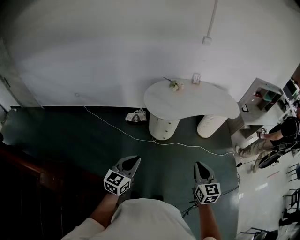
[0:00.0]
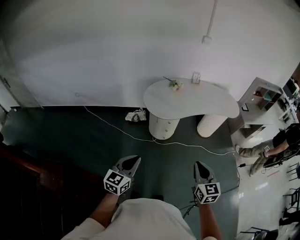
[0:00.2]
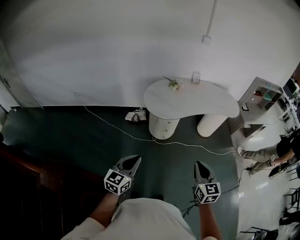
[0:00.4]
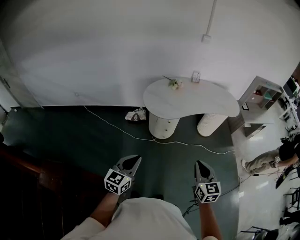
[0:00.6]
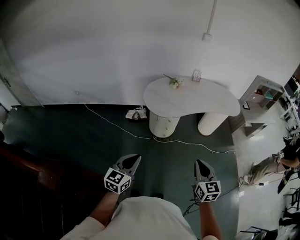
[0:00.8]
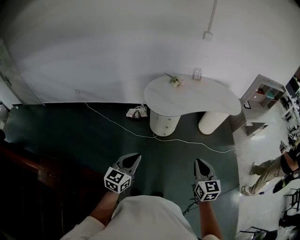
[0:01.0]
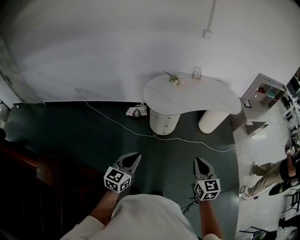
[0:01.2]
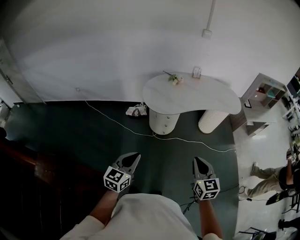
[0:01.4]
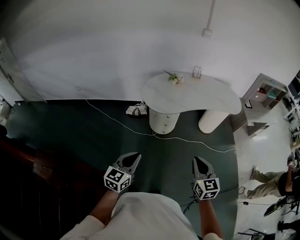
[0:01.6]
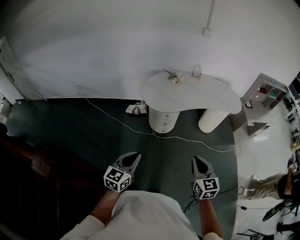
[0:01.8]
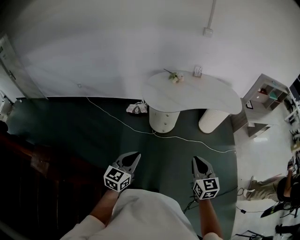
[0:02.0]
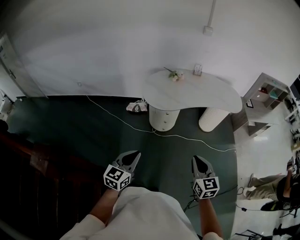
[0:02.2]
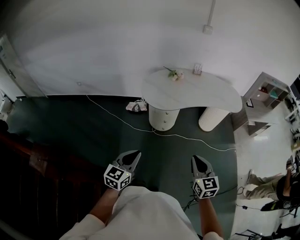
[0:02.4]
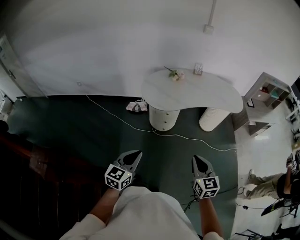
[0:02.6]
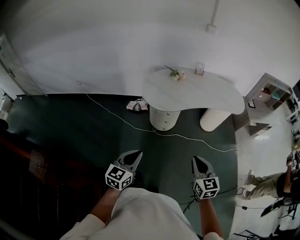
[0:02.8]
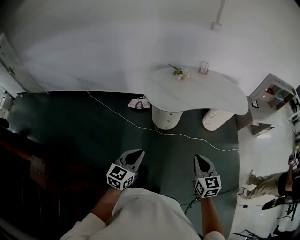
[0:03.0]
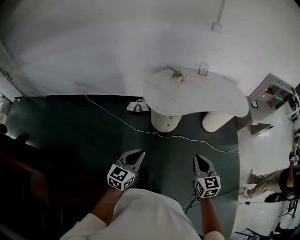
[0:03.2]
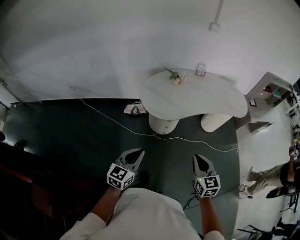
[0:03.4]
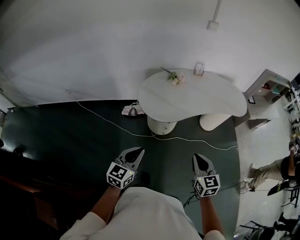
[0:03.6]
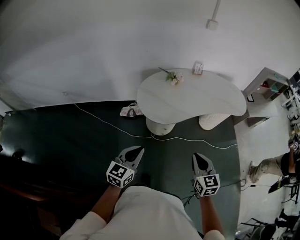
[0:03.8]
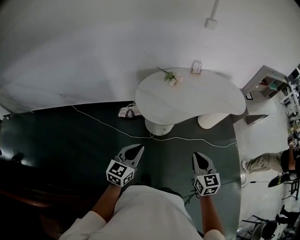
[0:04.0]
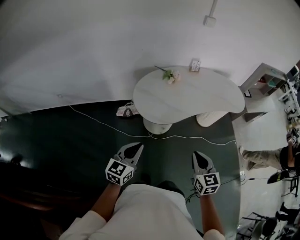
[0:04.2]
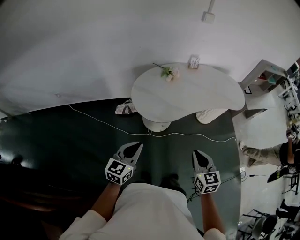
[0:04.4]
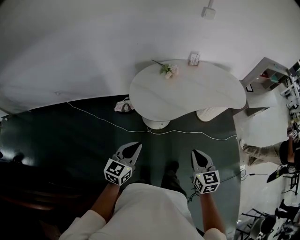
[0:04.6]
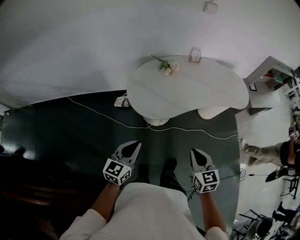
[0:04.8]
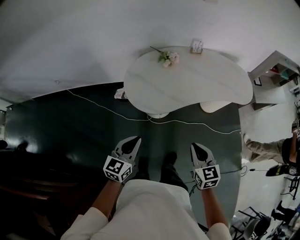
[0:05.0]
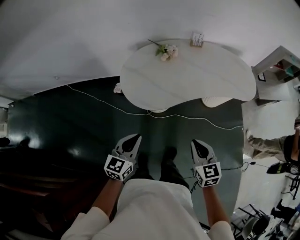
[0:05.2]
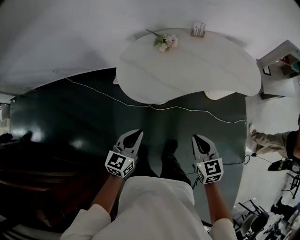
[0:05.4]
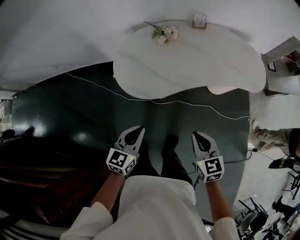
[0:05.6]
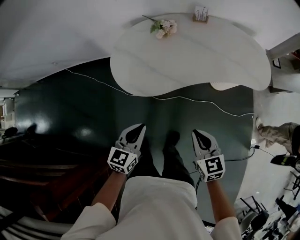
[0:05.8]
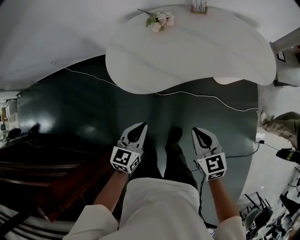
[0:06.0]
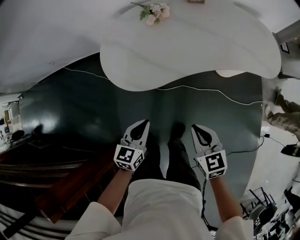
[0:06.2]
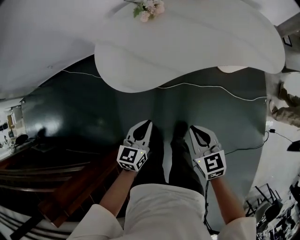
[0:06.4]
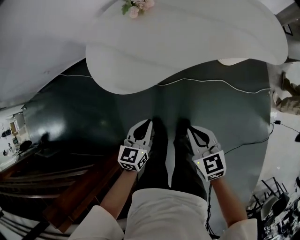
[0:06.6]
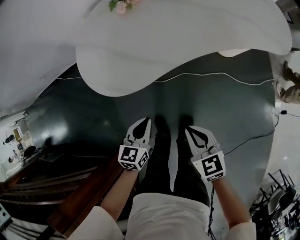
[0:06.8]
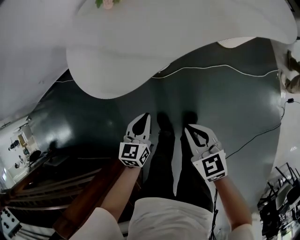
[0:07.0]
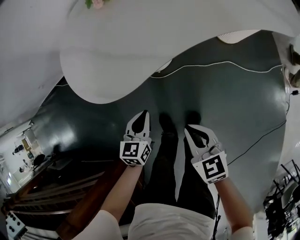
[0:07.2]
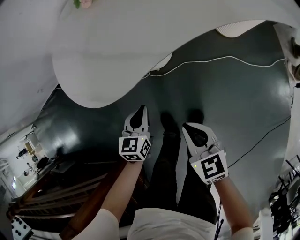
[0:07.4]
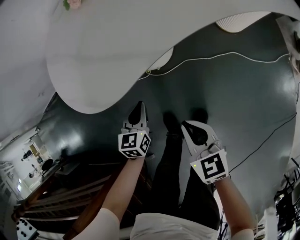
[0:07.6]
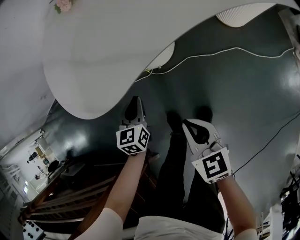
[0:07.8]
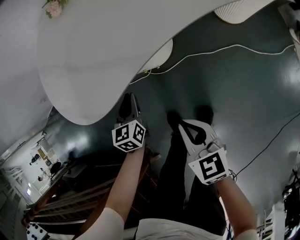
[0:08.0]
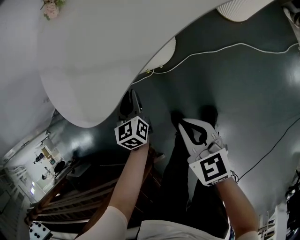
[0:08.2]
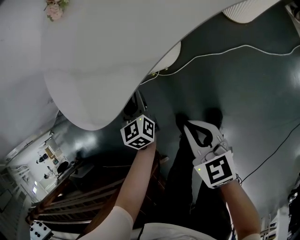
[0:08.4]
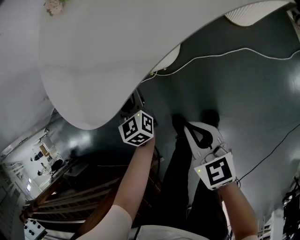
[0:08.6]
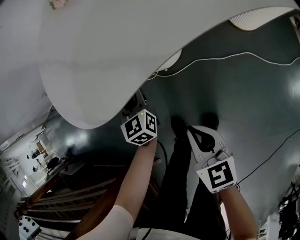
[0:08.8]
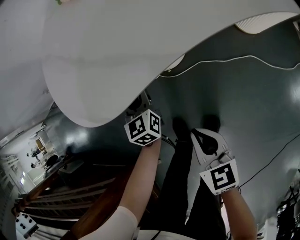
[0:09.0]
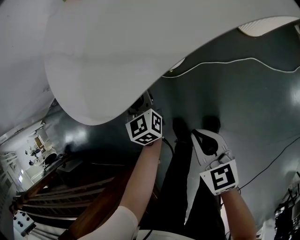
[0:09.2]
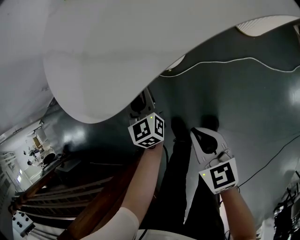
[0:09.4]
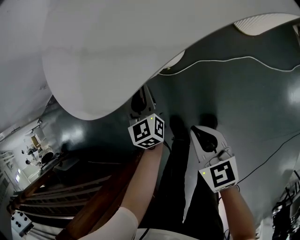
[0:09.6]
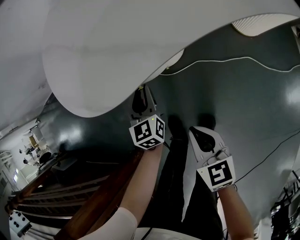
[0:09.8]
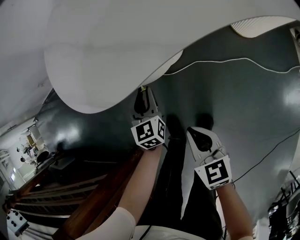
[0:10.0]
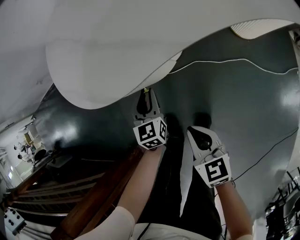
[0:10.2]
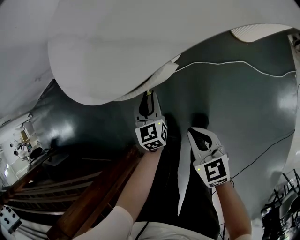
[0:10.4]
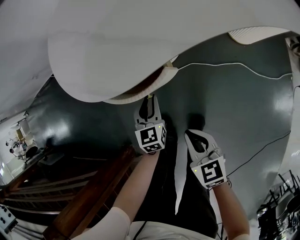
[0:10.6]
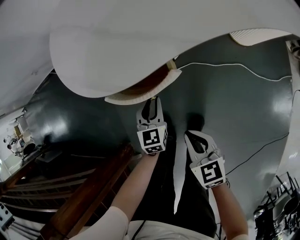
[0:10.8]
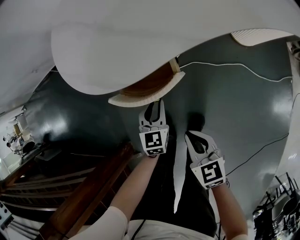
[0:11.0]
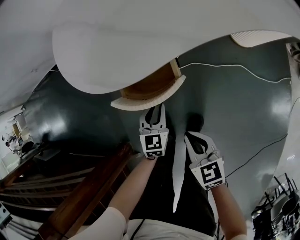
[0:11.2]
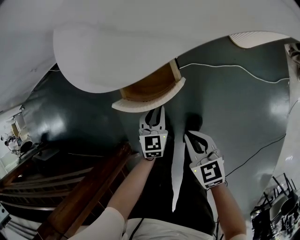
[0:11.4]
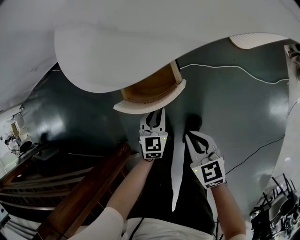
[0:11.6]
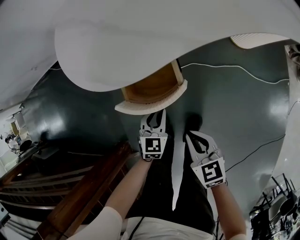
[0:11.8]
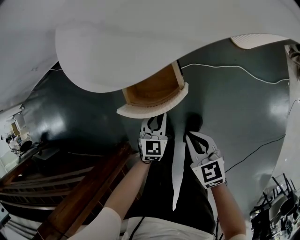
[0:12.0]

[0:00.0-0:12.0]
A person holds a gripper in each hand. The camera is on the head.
0:00.0 to 0:01.6: The left gripper heads to the right, covering about 5 cm, while the right gripper ends up about 5 cm from where it was.
0:01.6 to 0:03.0: The grippers both shift forward by approximately 5 cm.
0:03.0 to 0:04.4: The left gripper is displaced forward by roughly 20 cm; the right gripper shifts about 15 cm forward and to the left.
0:04.4 to 0:06.0: The right gripper travels downward, to the right and forward by about 25 cm, and swivels roughly 20 degrees. Meanwhile the left gripper goes some 30 cm to the right, downward and forward.
0:06.0 to 0:07.6: Both grippers travel together downward, some 30 cm.
0:07.6 to 0:09.0: The left gripper moves forward, roughly 10 cm, changes its angle by about 30 degrees, and opens. Meanwhile the right gripper goes approximately 5 cm downward.
0:09.0 to 0:10.4: The left gripper shifts about 10 cm backward.
0:10.4 to 0:12.0: The left gripper shifts approximately 10 cm backward, and rotates about 20 degrees.

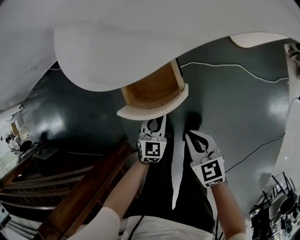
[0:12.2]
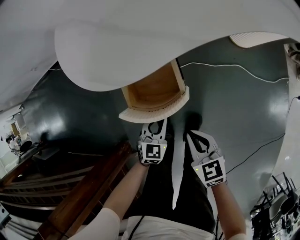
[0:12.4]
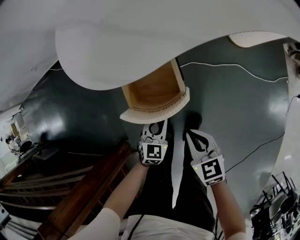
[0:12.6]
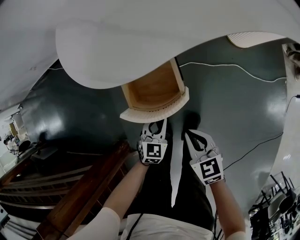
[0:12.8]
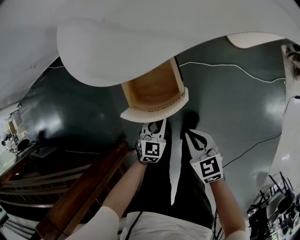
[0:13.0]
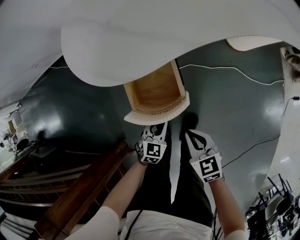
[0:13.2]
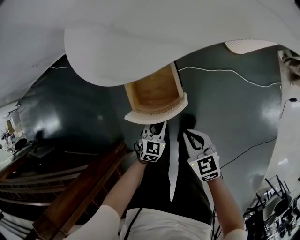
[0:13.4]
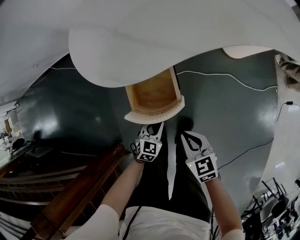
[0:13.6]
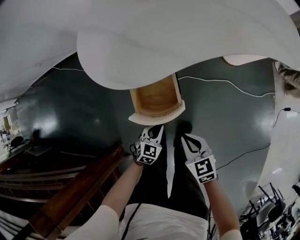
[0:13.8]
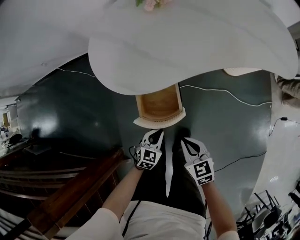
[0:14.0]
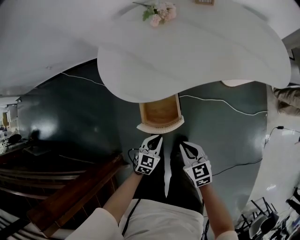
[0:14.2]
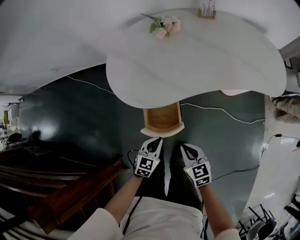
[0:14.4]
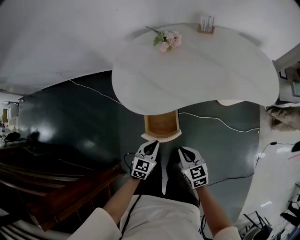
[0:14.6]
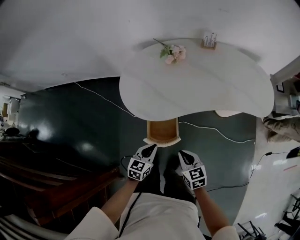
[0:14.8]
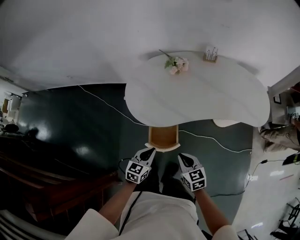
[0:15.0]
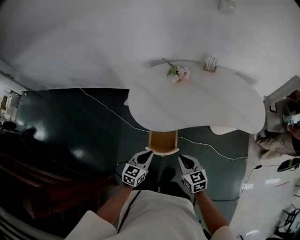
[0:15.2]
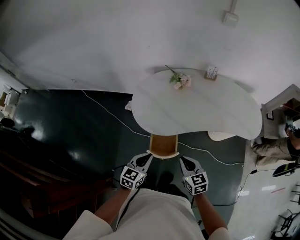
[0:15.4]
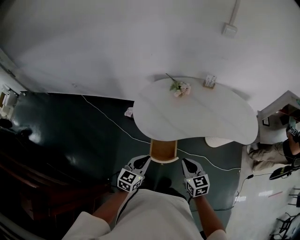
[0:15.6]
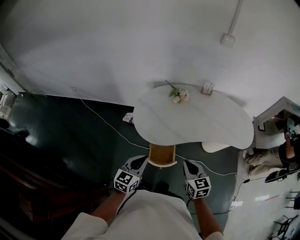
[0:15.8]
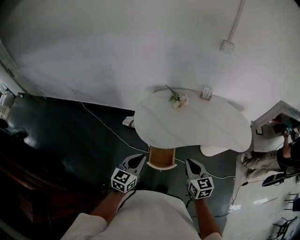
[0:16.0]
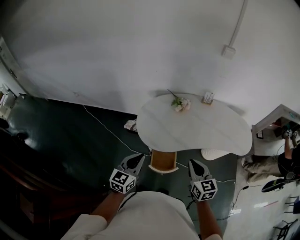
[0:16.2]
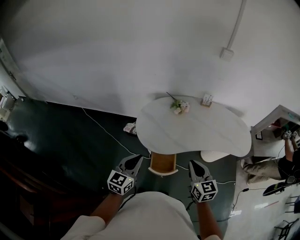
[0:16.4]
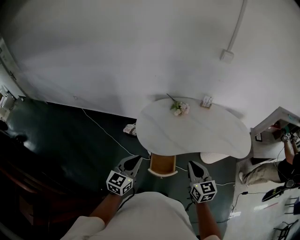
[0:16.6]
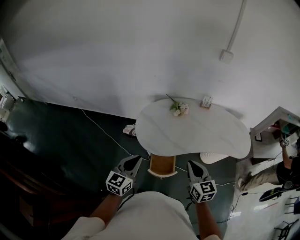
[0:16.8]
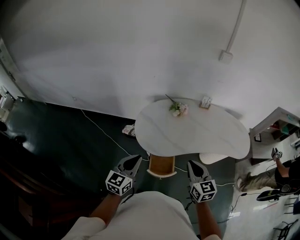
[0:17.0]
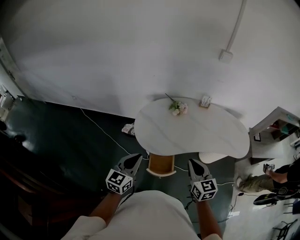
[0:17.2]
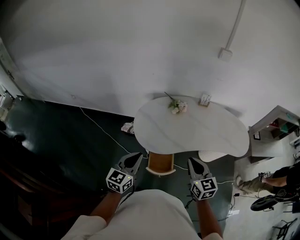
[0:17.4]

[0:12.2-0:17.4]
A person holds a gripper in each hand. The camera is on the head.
0:12.2 to 0:14.0: Both grippers move upward, approximately 10 cm.
0:14.0 to 0:15.6: The two grippers go about 35 cm upward. The left gripper rotates some 30 degrees.
0:15.6 to 0:17.4: The right gripper heads upward, covering some 15 cm. Meanwhile the left gripper travels upward and to the left by about 15 cm.

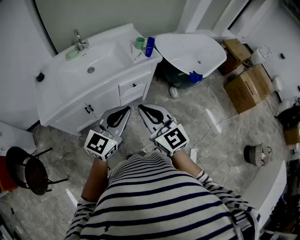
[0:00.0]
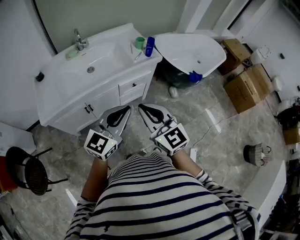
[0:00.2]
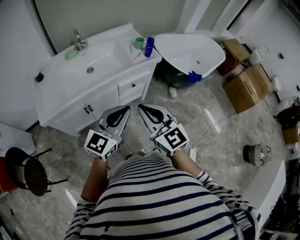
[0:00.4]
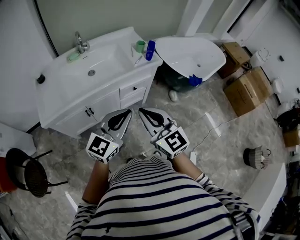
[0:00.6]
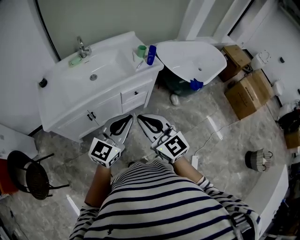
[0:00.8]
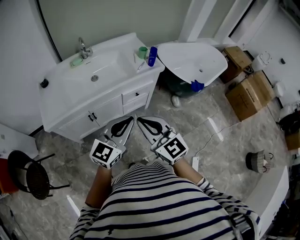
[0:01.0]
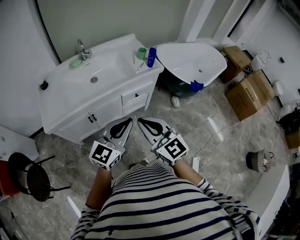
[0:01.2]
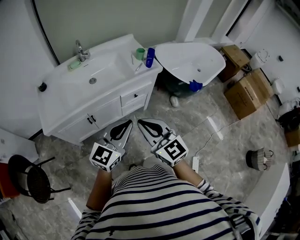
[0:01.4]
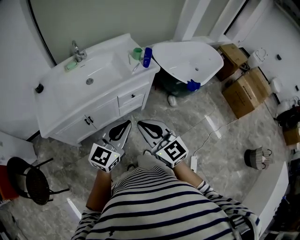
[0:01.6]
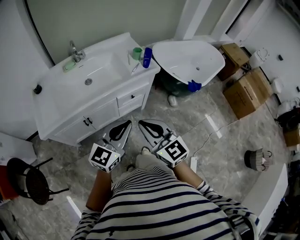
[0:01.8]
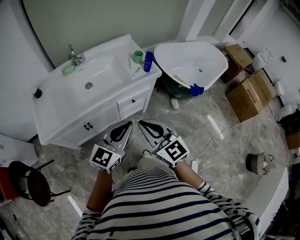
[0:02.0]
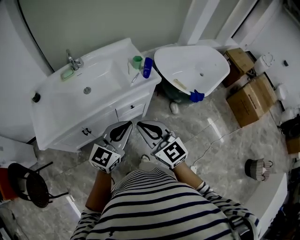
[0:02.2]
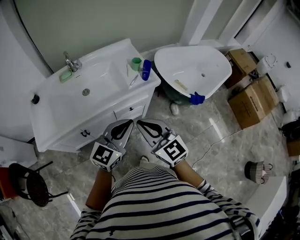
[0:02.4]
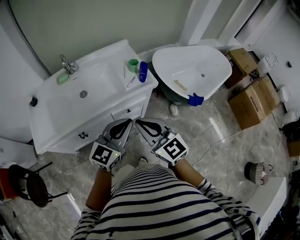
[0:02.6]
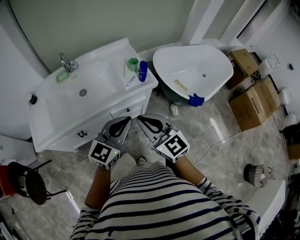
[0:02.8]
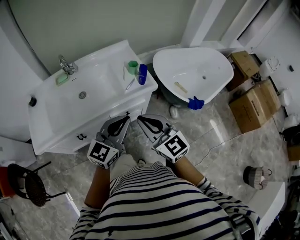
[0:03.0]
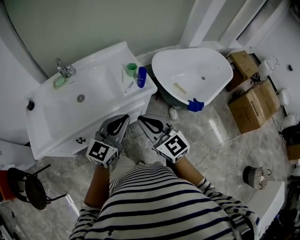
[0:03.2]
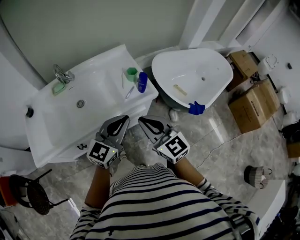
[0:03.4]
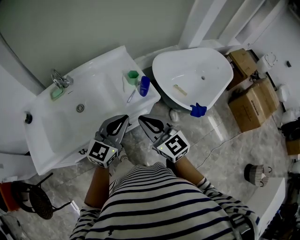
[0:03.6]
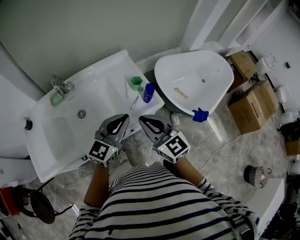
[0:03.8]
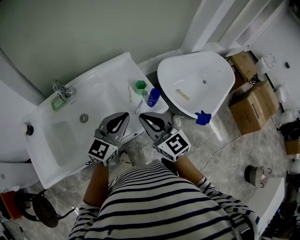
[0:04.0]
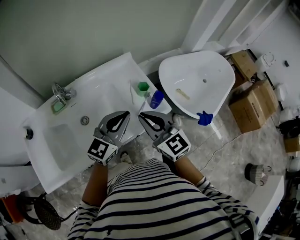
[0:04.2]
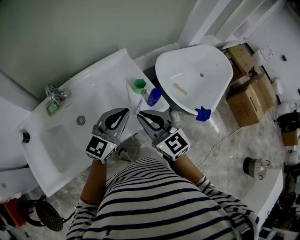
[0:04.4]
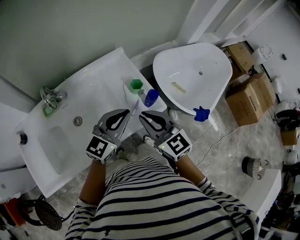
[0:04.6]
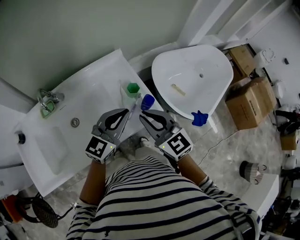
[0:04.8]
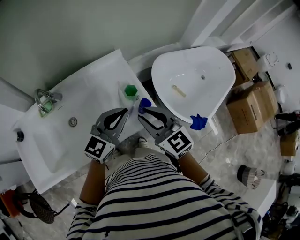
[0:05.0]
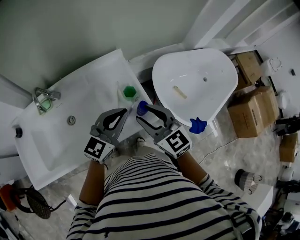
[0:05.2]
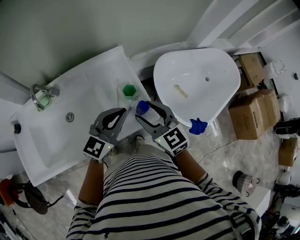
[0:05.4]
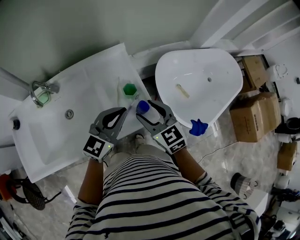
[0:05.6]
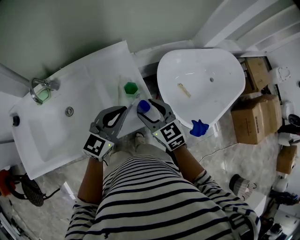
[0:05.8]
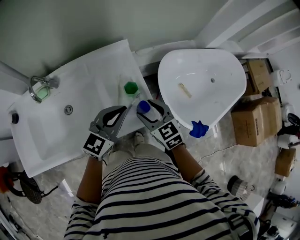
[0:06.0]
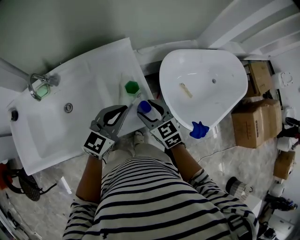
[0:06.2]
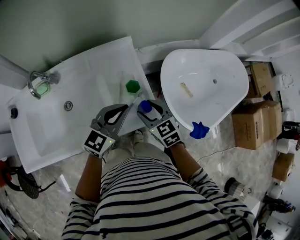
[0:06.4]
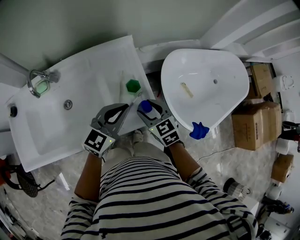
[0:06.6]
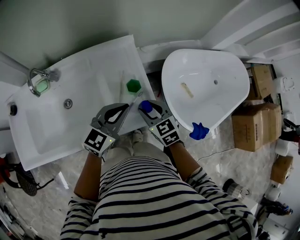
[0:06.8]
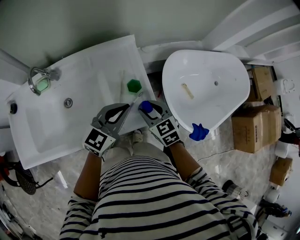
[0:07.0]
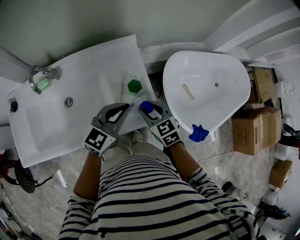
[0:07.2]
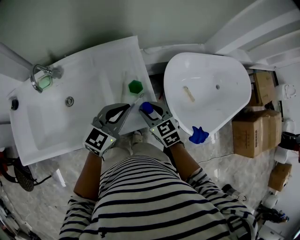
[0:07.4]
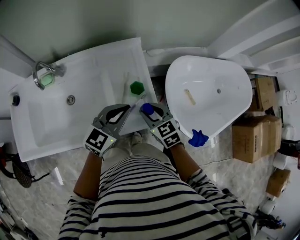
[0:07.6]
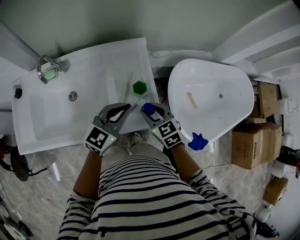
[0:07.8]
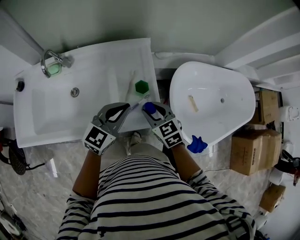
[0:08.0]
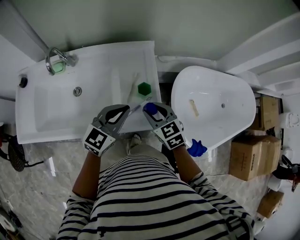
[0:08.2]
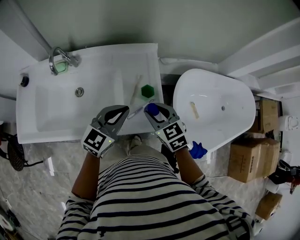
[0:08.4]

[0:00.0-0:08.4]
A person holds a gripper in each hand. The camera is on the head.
0:00.0 to 0:01.4: The grippers make only small movements.
0:01.4 to 0:02.8: Both grippers move forward and to the right, approximately 20 cm.
0:02.8 to 0:04.2: The grippers both shift forward by about 25 cm.
0:04.2 to 0:05.6: The right gripper moves forward, to the right and downward, about 15 cm, and opens up. The left gripper goes some 10 cm forward and to the right.
0:05.6 to 0:07.0: The right gripper is displaced downward by approximately 10 cm.
0:07.0 to 0:08.4: The right gripper ends up roughly 5 cm from where it was.
